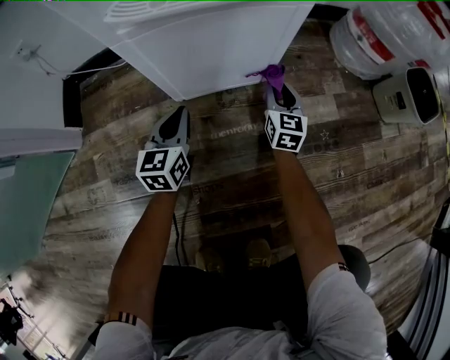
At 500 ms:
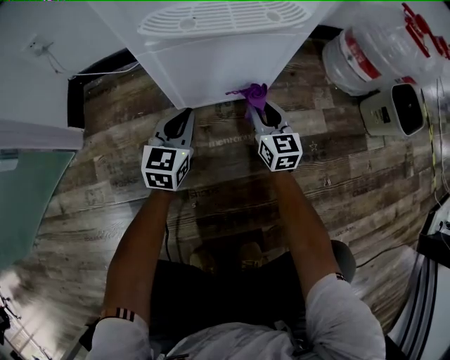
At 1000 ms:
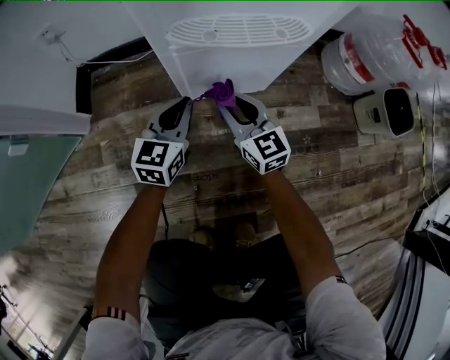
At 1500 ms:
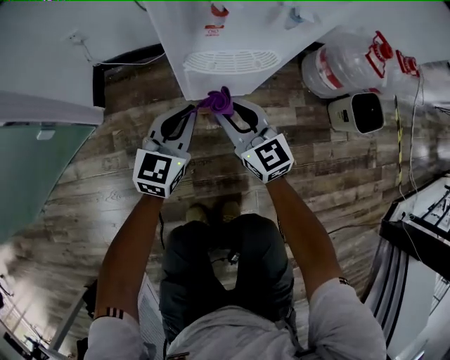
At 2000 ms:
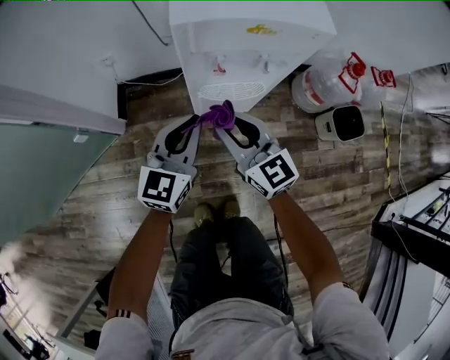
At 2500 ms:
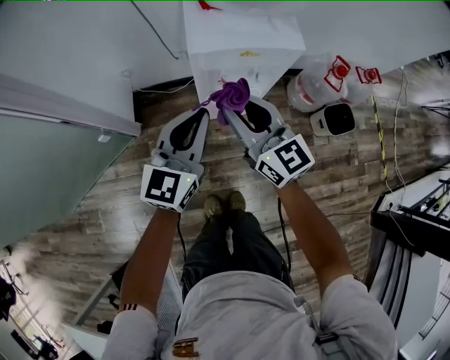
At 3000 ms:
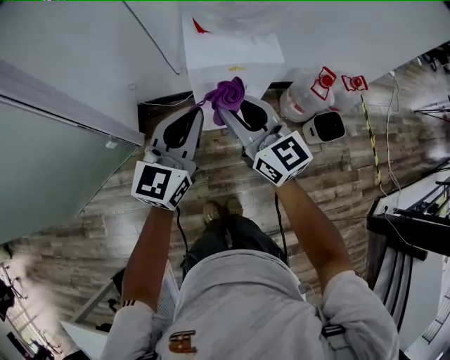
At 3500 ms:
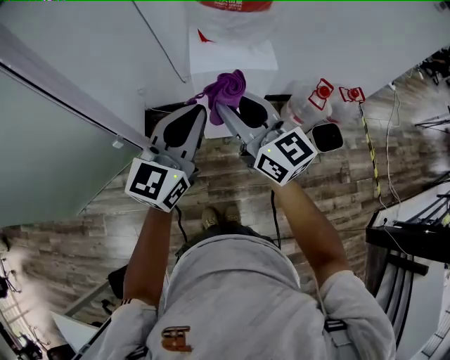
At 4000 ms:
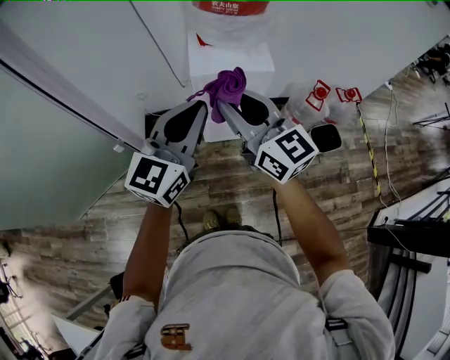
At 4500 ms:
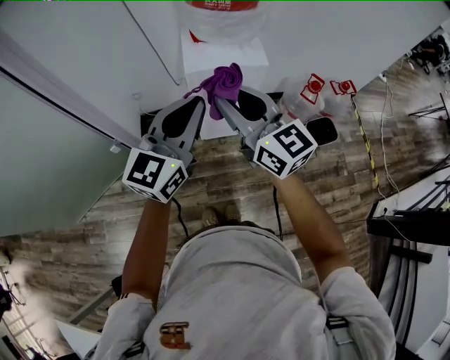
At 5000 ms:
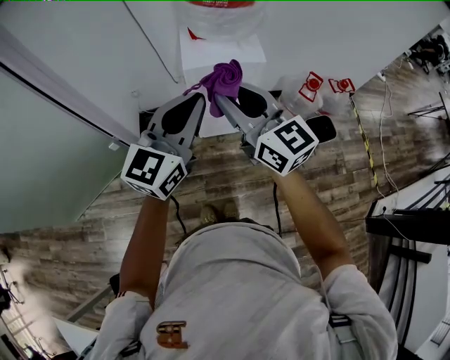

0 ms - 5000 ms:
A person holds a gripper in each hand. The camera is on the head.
0 ms - 2500 ms: Both grippers travel together upward, roughly 80 cm. The right gripper rotates roughly 40 degrees, while the left gripper changes its angle by roughly 20 degrees.
2500 ms - 5000 ms: The two grippers go roughly 20 cm upward and backward.

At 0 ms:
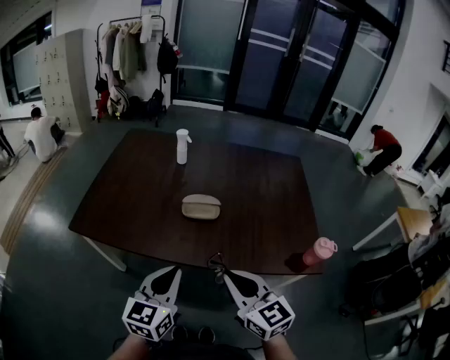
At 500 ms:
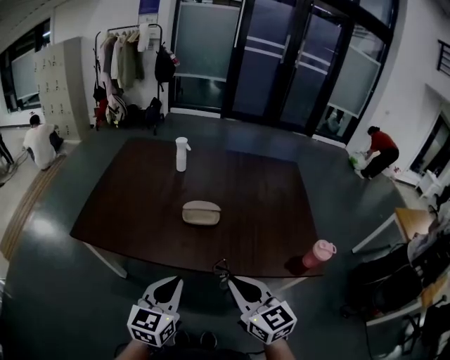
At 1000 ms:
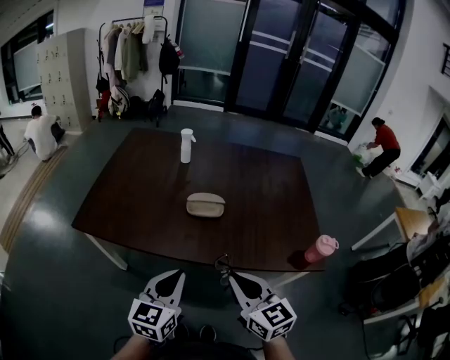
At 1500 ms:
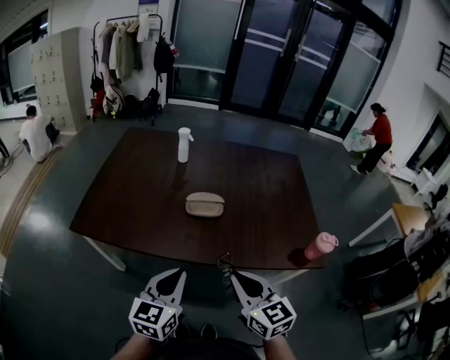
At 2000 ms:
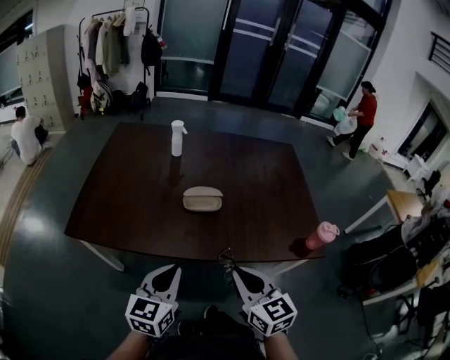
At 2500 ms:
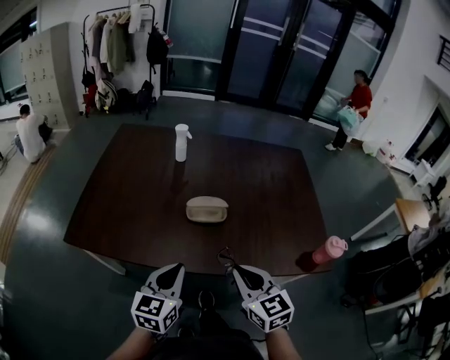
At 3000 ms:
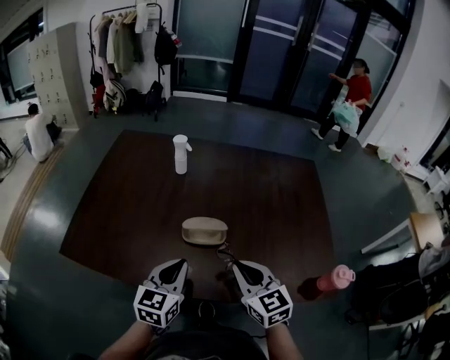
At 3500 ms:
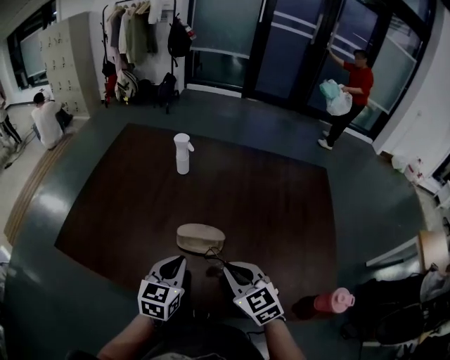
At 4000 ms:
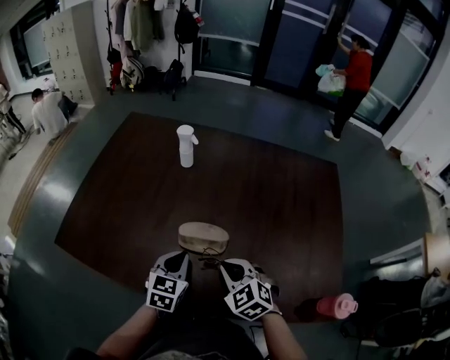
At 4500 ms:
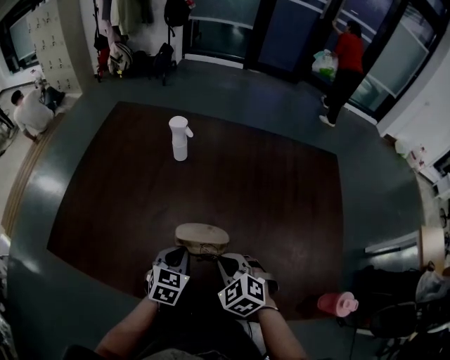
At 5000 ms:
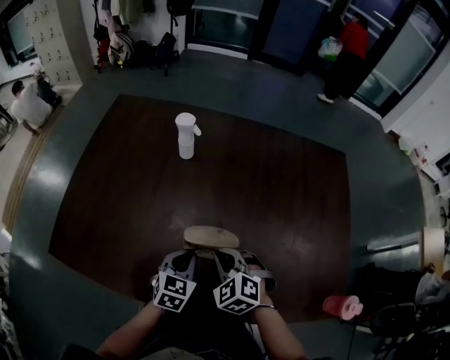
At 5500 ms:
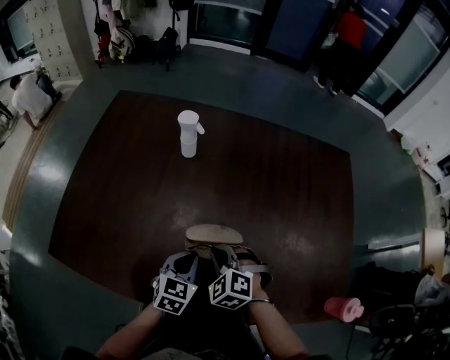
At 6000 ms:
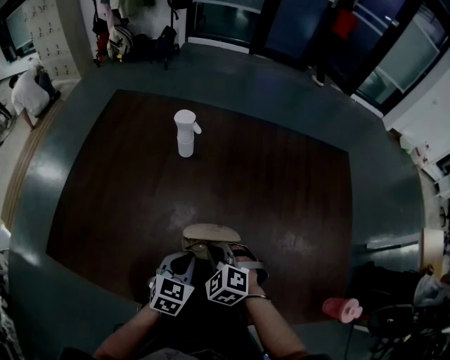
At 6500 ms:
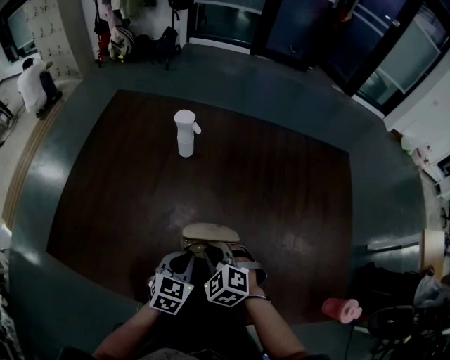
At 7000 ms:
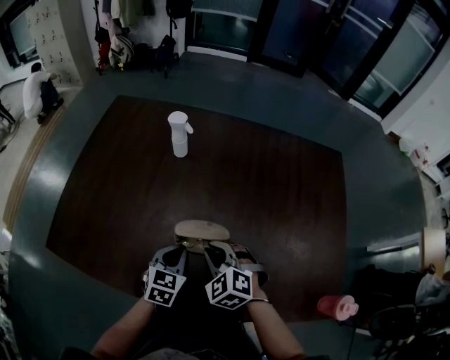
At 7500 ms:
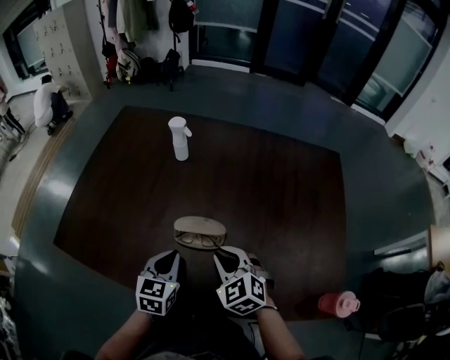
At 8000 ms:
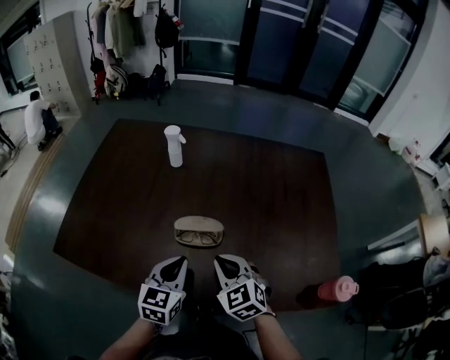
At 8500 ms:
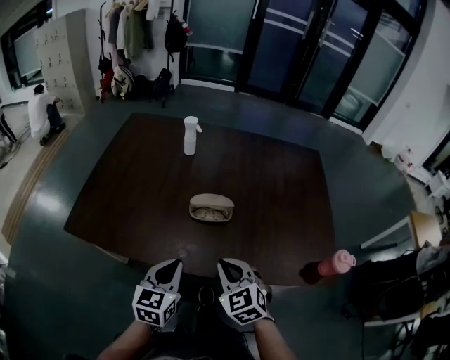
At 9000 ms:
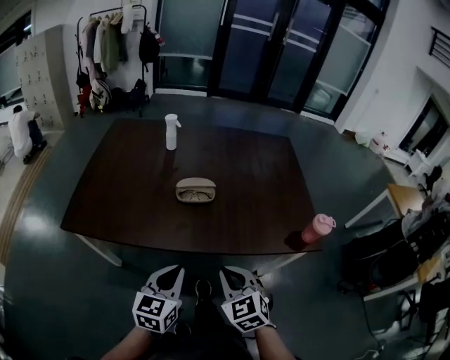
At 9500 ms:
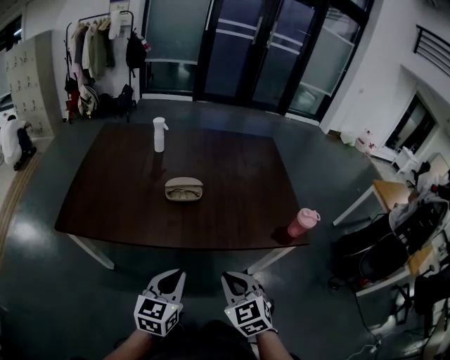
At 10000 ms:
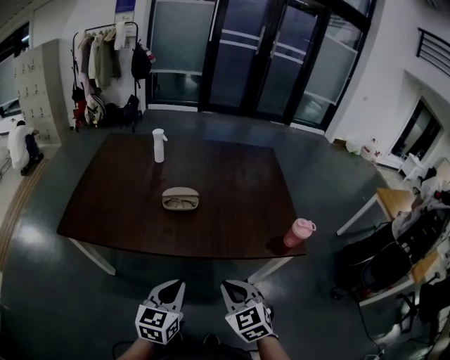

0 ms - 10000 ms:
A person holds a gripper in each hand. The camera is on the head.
0 ms - 2000 ms: The left gripper shifts by some 5 cm.
2000 ms - 4000 ms: The grippers both shift forward and downward by some 30 cm. The right gripper turns by roughly 40 degrees. The left gripper turns by some 20 degrees.
4000 ms - 6000 ms: The right gripper is displaced forward, downward and to the left by some 15 cm. Meanwhile the left gripper moves downward, roughly 5 cm.
6000 ms - 8000 ms: The left gripper shifts approximately 15 cm upward and backward. The right gripper is displaced upward, backward and to the right by about 15 cm, and turns by roughly 30 degrees.
8000 ms - 10000 ms: The two grippers go roughly 30 cm backward.

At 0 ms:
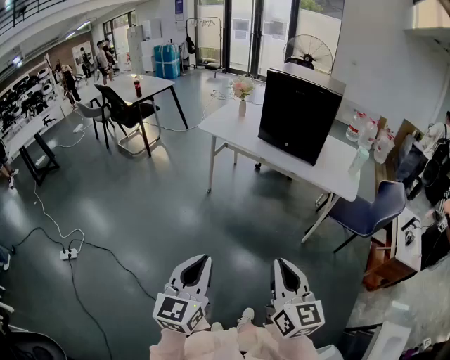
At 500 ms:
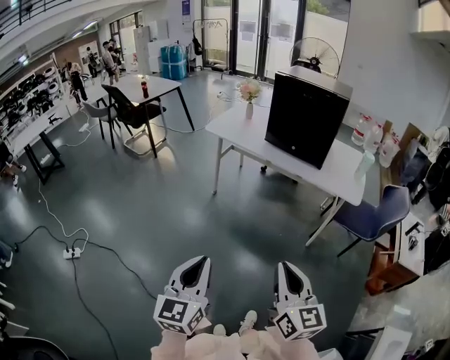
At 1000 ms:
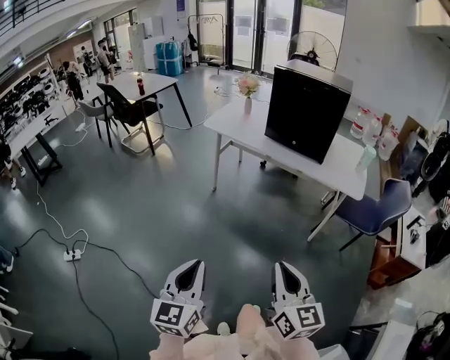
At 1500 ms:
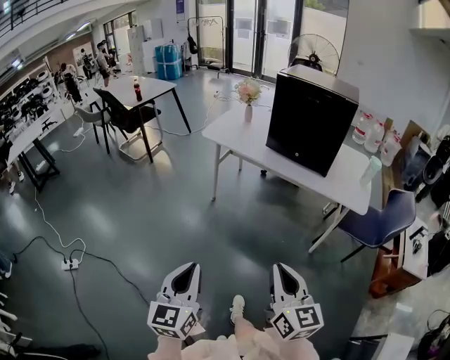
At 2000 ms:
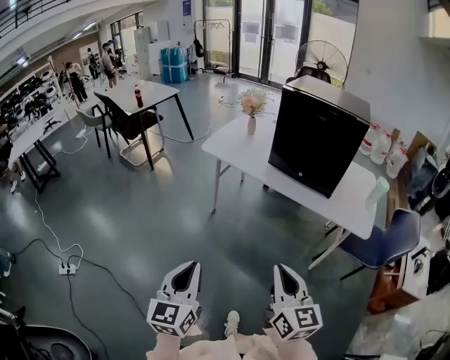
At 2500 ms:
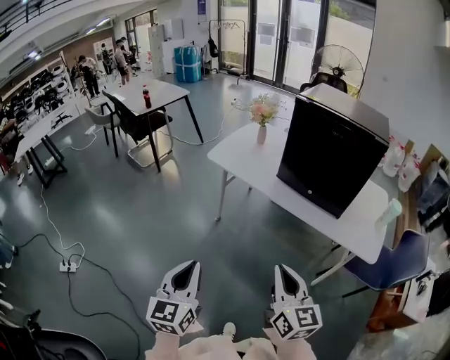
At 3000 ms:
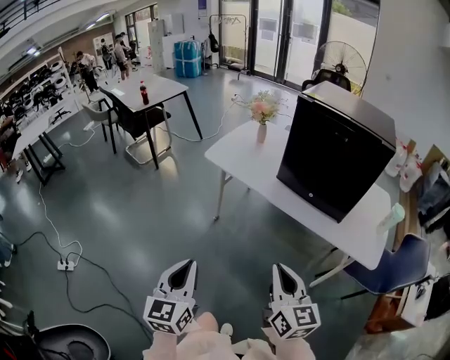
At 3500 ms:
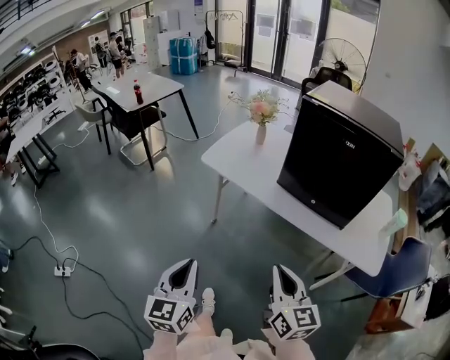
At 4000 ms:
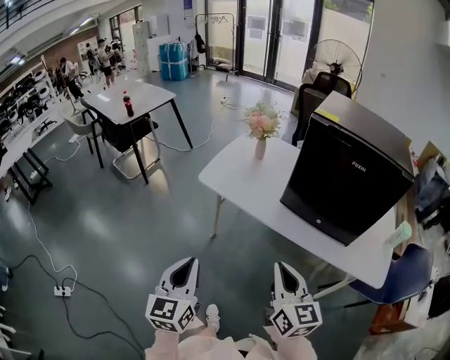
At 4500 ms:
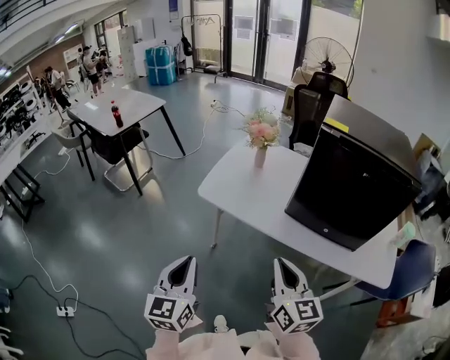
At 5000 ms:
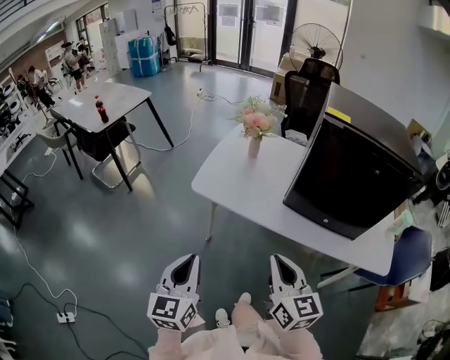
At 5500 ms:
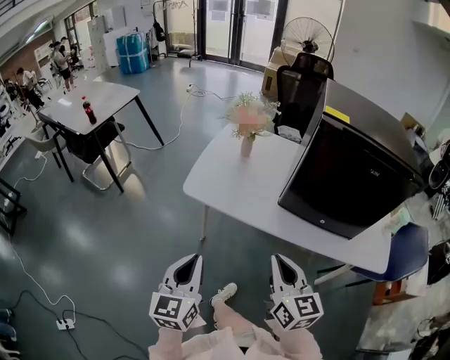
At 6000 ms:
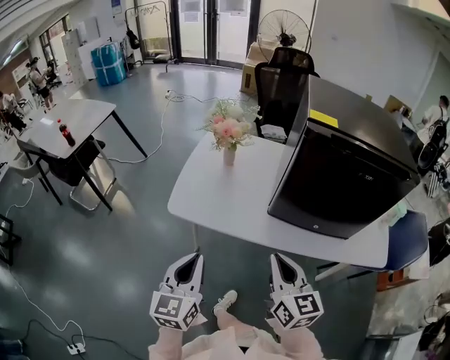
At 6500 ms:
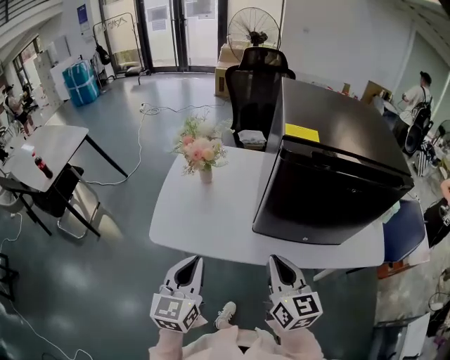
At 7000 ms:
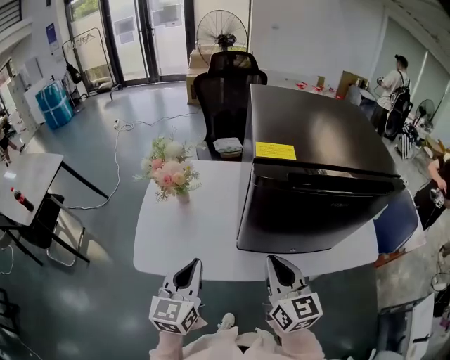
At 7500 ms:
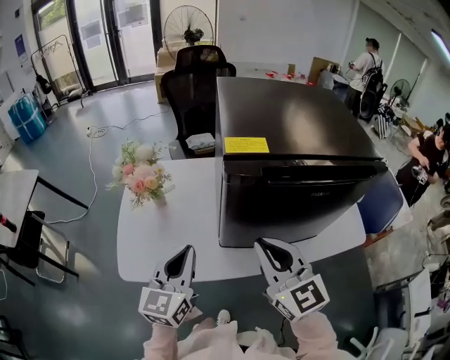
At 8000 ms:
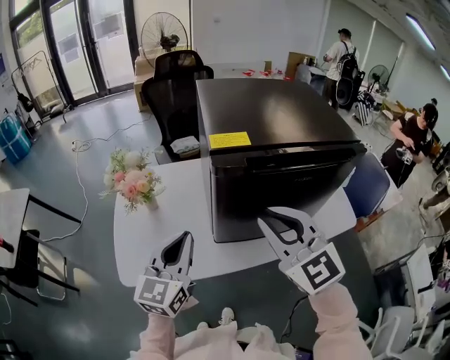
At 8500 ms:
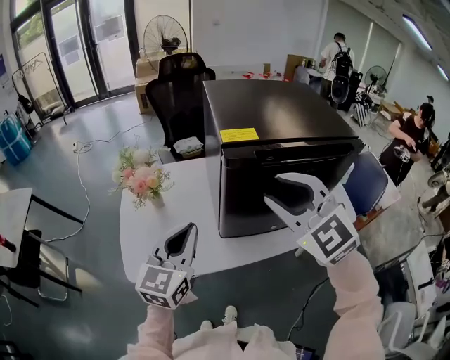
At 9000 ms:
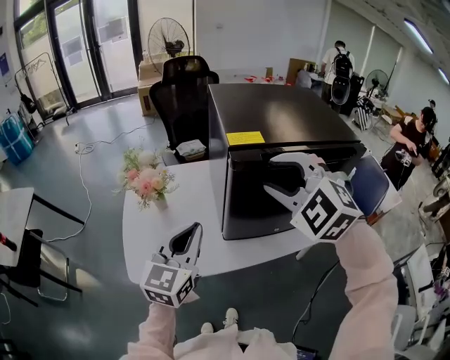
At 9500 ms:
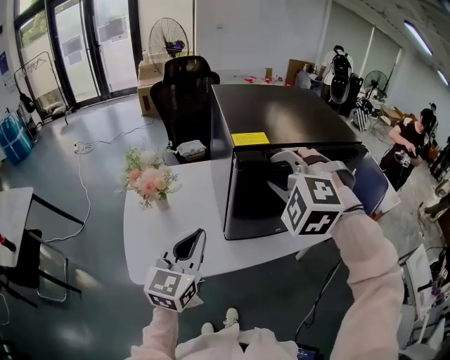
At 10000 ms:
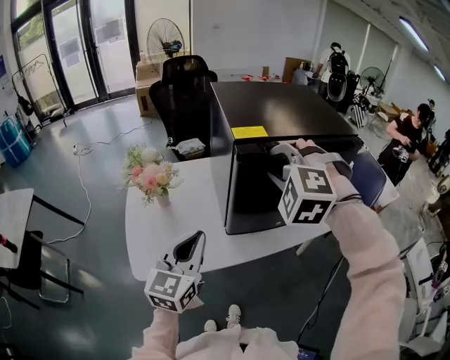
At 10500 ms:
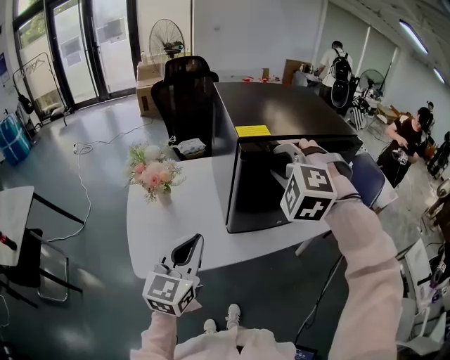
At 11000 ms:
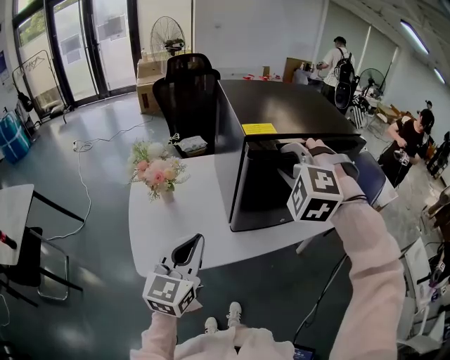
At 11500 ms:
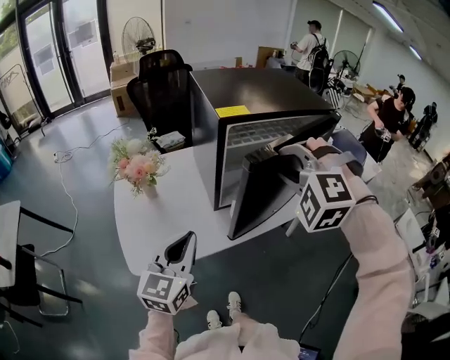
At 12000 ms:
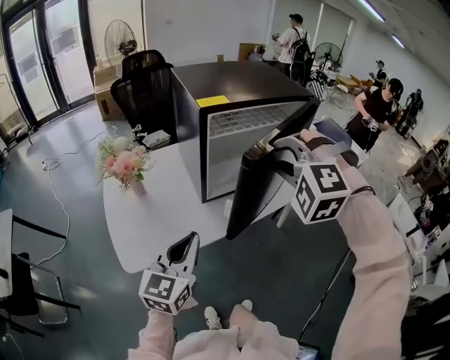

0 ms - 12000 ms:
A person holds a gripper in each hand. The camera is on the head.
0 ms - 2000 ms: Both grippers move forward, about 20 cm.
2000 ms - 4000 ms: The two grippers go about 35 cm forward.
4000 ms - 6000 ms: Both grippers move forward, about 20 cm. The left gripper changes its angle by some 20 degrees.
6000 ms - 8000 ms: The left gripper moves forward and to the right, some 25 cm, and changes its angle by some 30 degrees. The right gripper is displaced forward, upward and to the right by some 20 cm, and swivels roughly 30 degrees.
8000 ms - 10000 ms: The left gripper ends up some 5 cm from where it was. The right gripper heads forward, covering roughly 5 cm, and turns by roughly 60 degrees.
10000 ms - 12000 ms: The right gripper travels backward and to the right by approximately 15 cm; the left gripper heads backward, covering approximately 10 cm.
